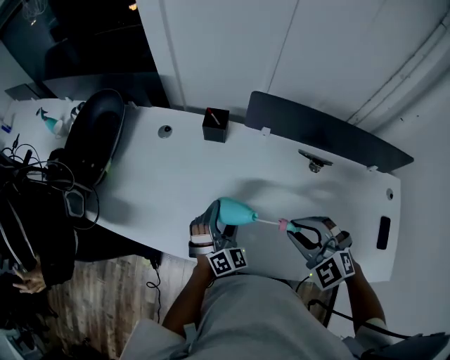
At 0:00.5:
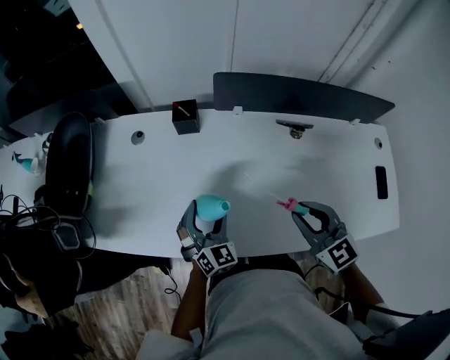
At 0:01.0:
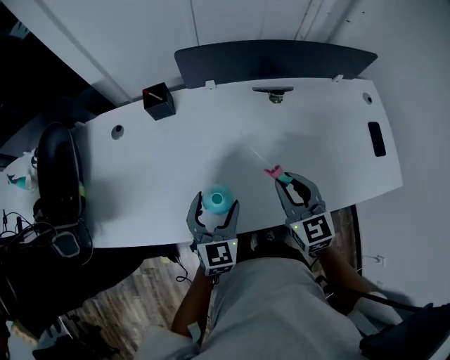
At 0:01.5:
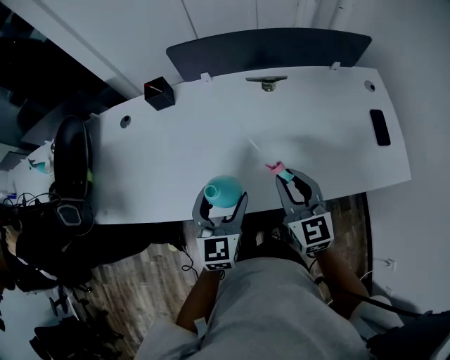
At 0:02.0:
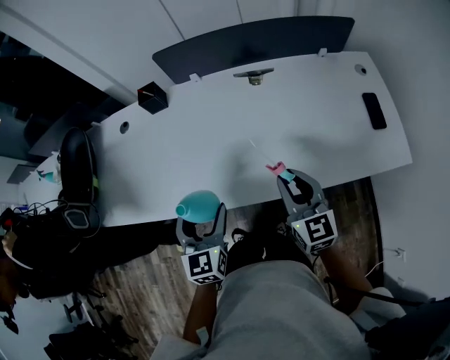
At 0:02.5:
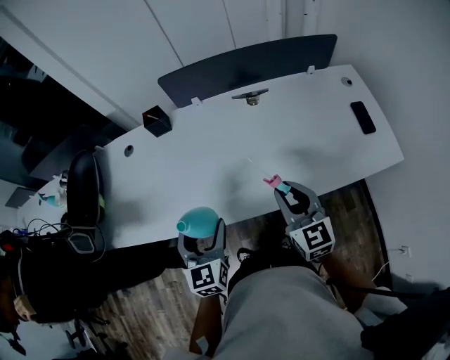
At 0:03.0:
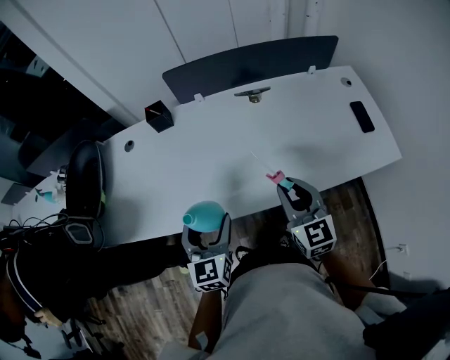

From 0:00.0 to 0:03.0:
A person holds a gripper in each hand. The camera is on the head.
From 0:00.0 to 0:01.5: The left gripper changes place by approximately 20 cm, and rotates some 40 degrees. Meanwhile the right gripper moves roughly 15 cm, and changes its angle by roughly 60 degrees.
From 0:01.5 to 0:03.0: The right gripper is displaced backward by approximately 5 cm; the left gripper travels to the left and backward by approximately 10 cm.

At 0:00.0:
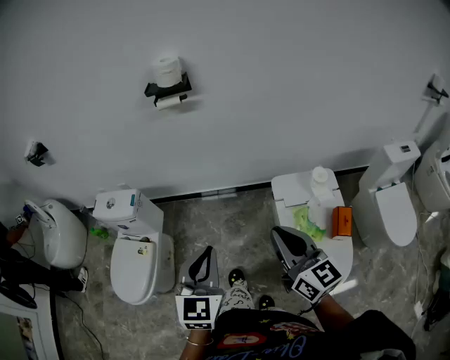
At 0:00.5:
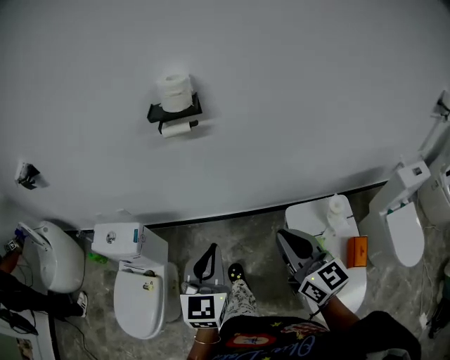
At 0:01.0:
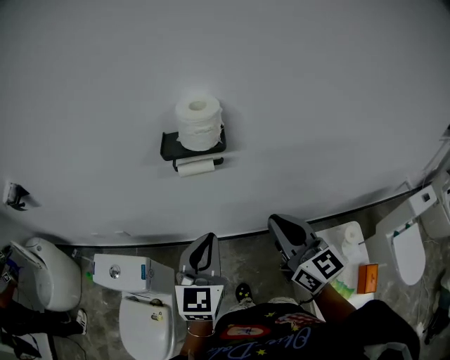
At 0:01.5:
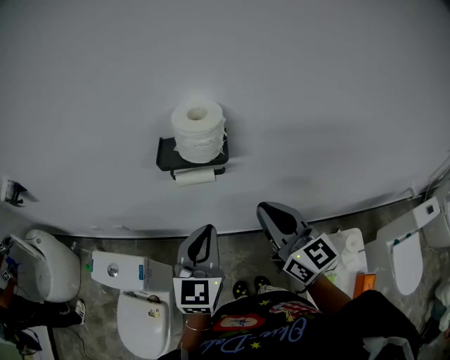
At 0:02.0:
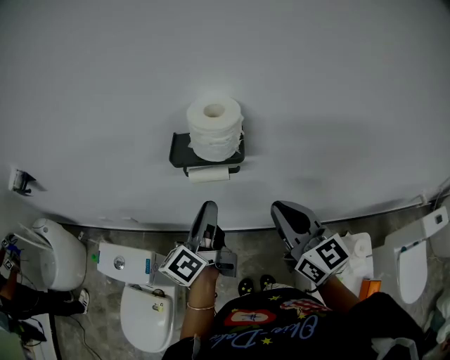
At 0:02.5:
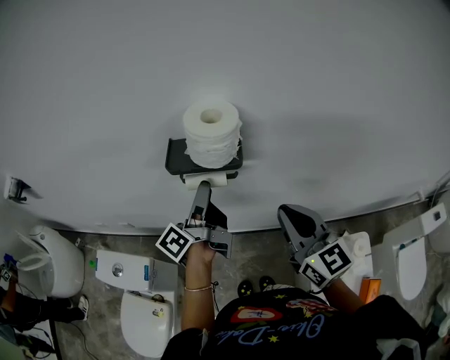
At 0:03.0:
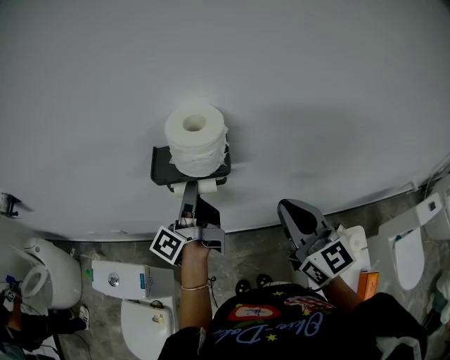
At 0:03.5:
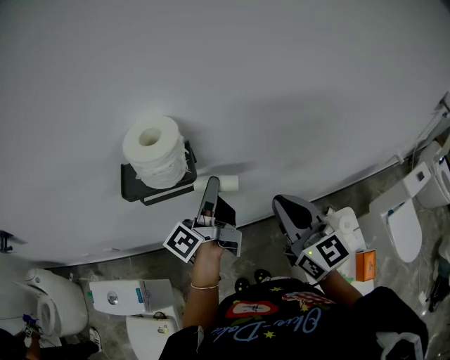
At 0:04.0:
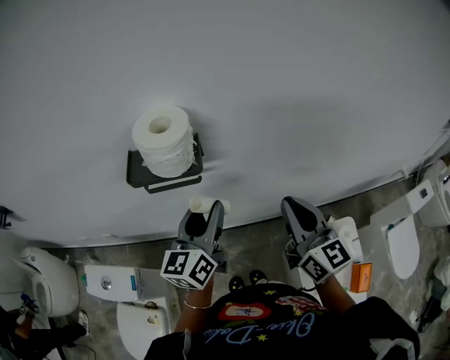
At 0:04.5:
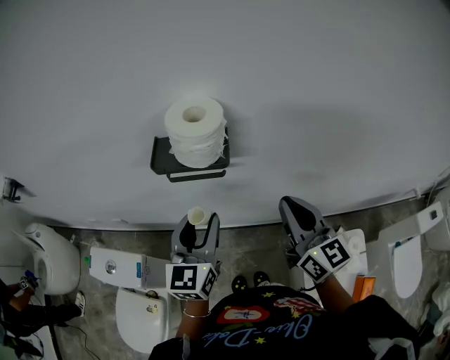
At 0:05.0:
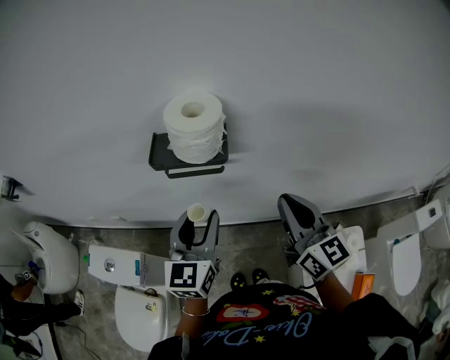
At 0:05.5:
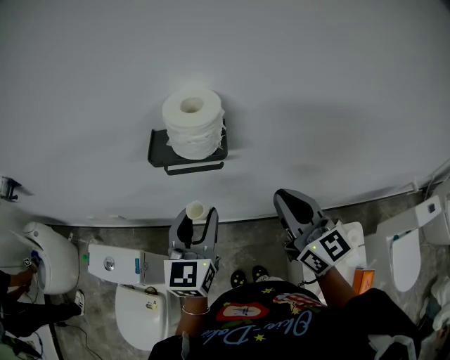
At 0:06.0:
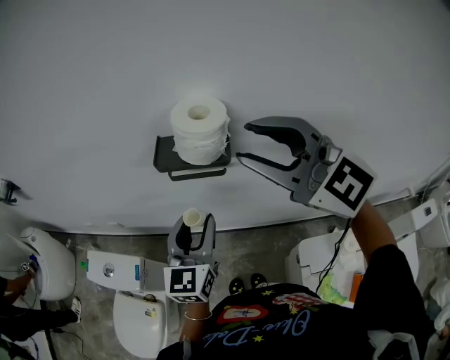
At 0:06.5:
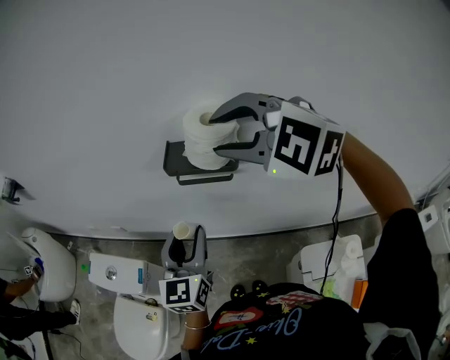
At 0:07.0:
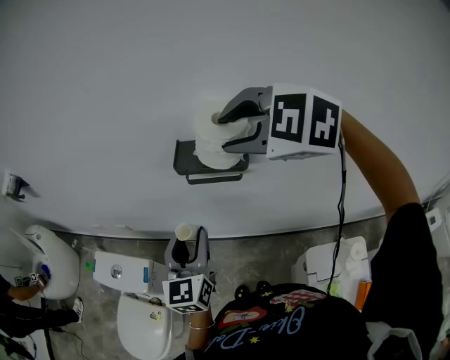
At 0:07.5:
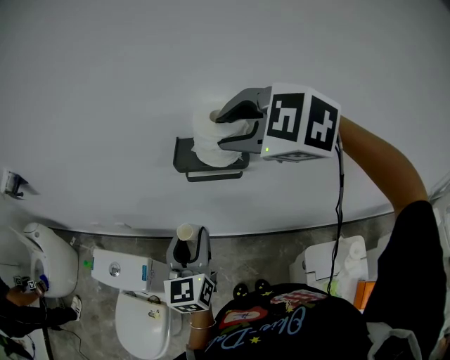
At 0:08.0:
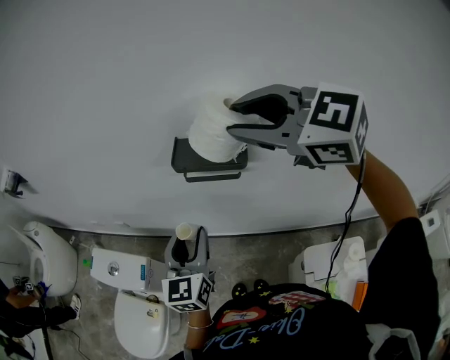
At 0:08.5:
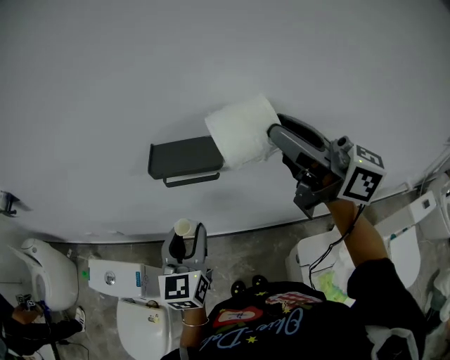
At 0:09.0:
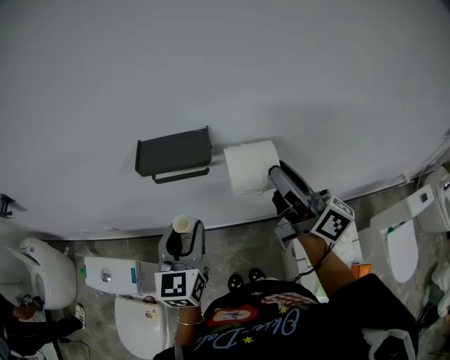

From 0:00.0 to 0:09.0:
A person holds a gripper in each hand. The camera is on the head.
From 0:00.0 to 0:02.0: The pair of grippers is taken forward, roughly 50 cm. The left gripper rotates around the line of its fingers by approximately 60 degrees, counterclockwise from behind.
From 0:02.0 to 0:04.5: The right gripper goes some 5 cm to the right. Meanwhile the left gripper travels to the right and back again, roughly 10 cm each way, rolls clockwise, seen from behind, by some 50 degrees, and opens.
From 0:04.5 to 0:07.0: The left gripper is displaced to the left by roughly 10 cm; the right gripper travels to the left, upward and forward by about 25 cm, tips its fingers downward by some 50 degrees, and opens its fingers.
From 0:07.0 to 0:09.0: The left gripper shifts roughly 5 cm to the right. The right gripper shifts some 20 cm to the right, backward and downward, and tilts its fingers about 60 degrees upward.

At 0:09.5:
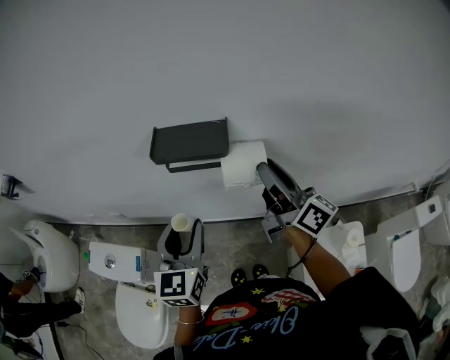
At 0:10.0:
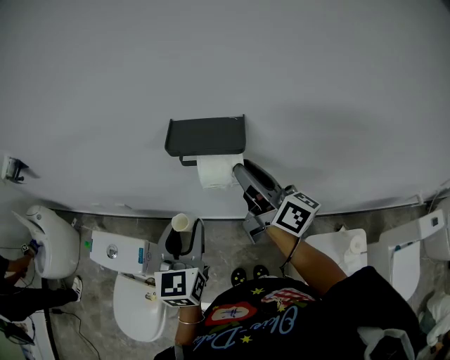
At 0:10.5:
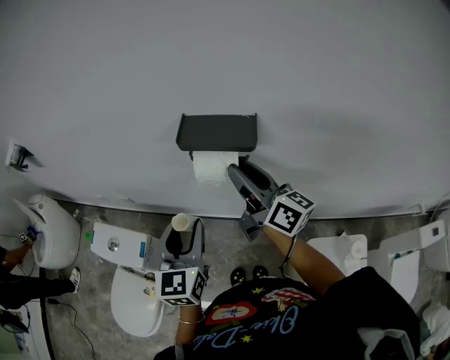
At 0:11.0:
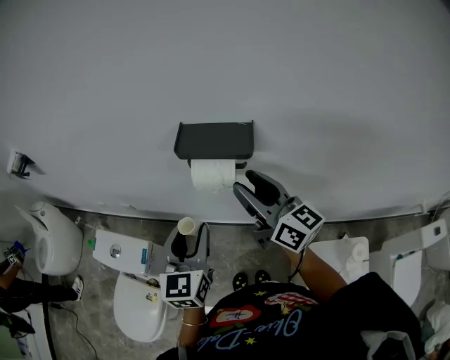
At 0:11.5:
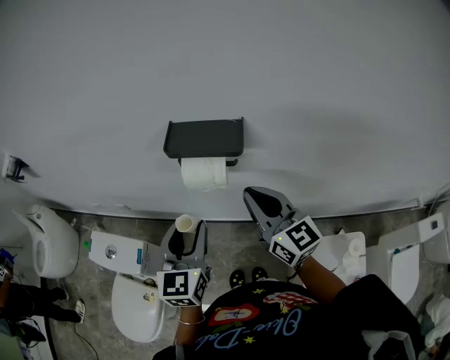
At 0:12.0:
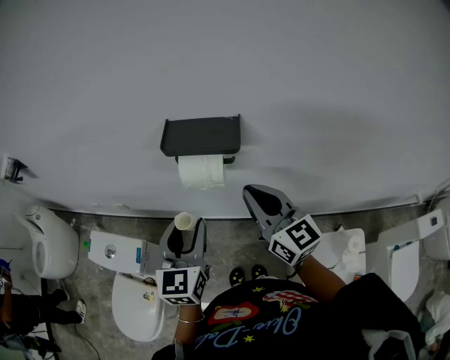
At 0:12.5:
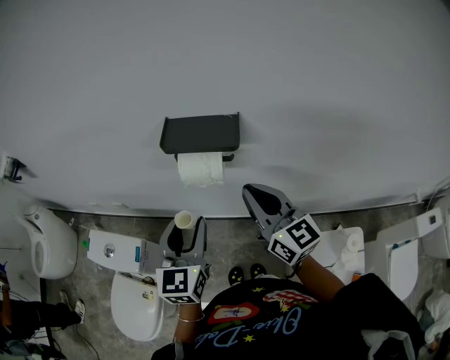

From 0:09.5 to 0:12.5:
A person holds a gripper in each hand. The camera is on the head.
From 0:09.5 to 0:11.0: The right gripper is displaced to the left by about 10 cm, and swivels roughly 20 degrees.
From 0:11.0 to 0:12.5: The right gripper closes its fingers.

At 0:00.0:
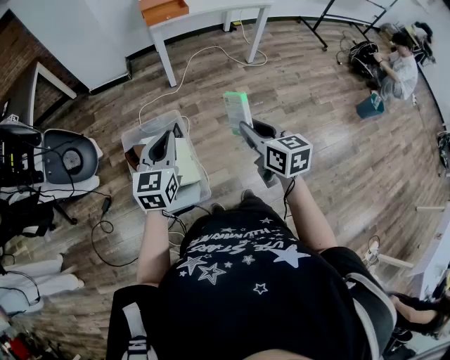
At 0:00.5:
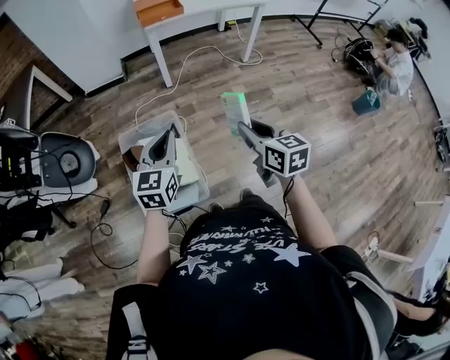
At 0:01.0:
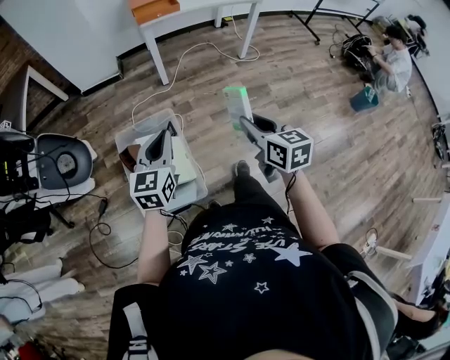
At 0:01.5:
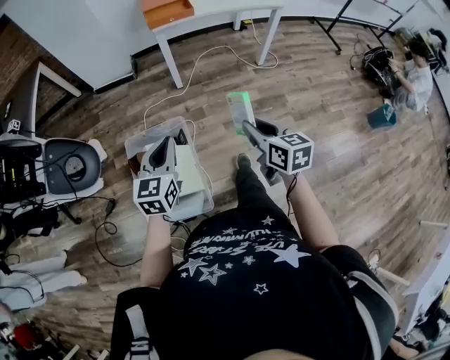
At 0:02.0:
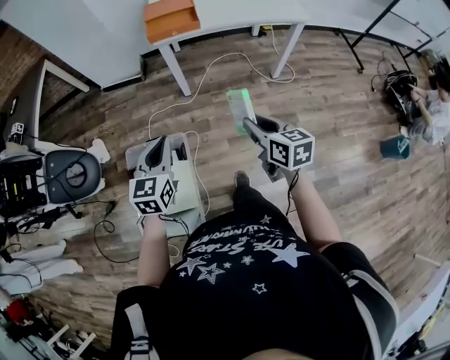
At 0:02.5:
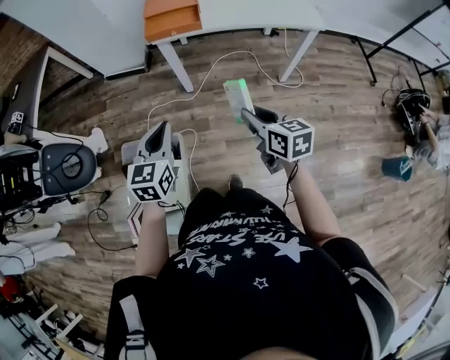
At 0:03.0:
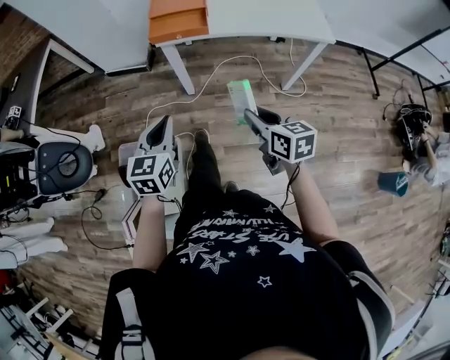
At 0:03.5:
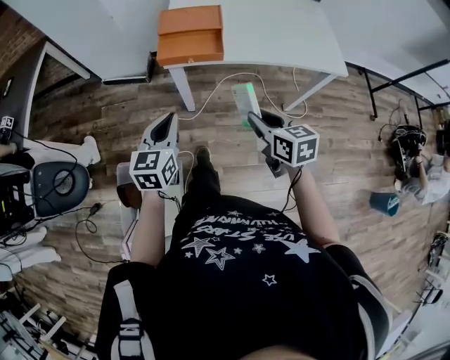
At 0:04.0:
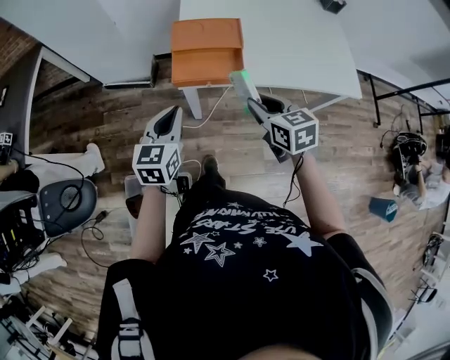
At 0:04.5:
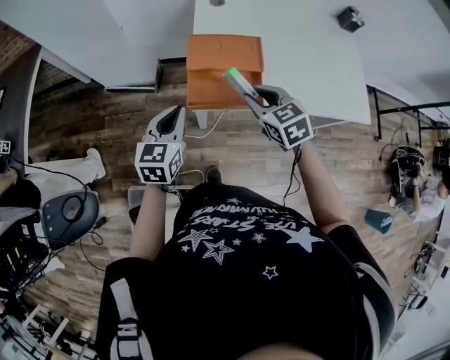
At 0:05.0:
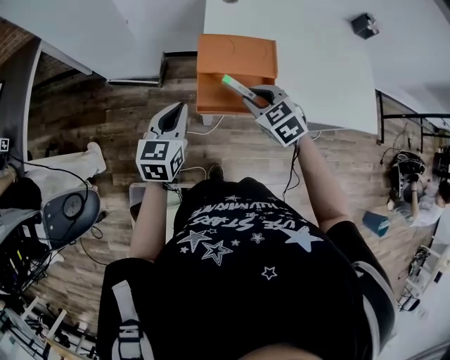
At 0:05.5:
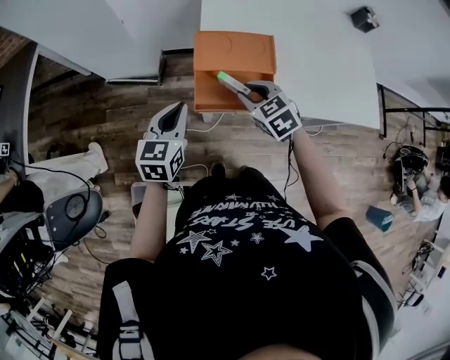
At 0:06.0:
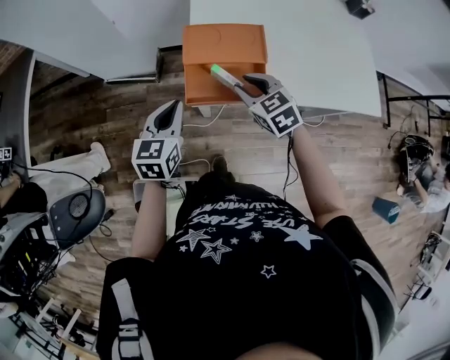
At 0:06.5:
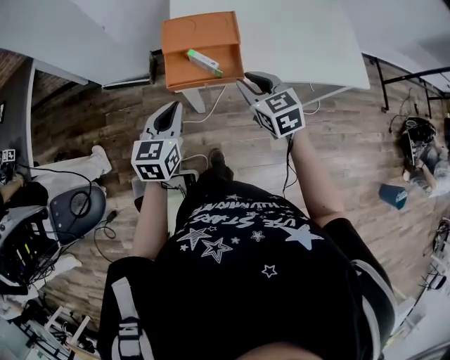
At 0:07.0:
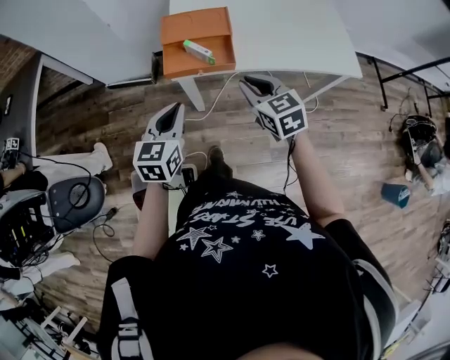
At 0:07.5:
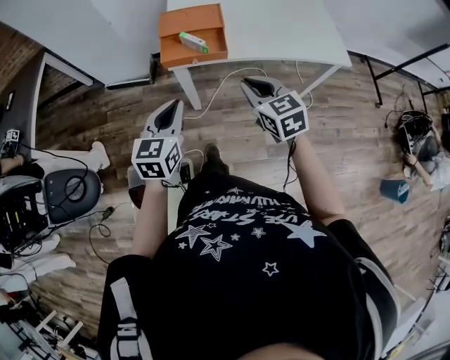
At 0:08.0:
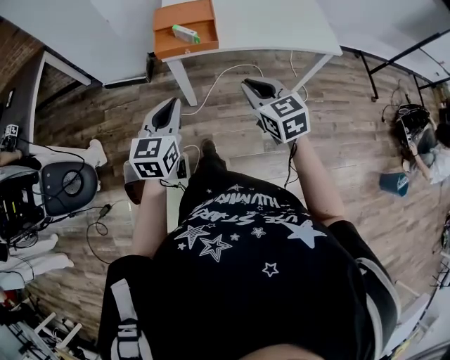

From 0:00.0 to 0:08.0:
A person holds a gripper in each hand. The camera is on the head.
From 0:00.0 to 0:02.0: Both grippers travel together forward and to the right, approximately 35 cm.
From 0:02.0 to 0:04.0: The two grippers travel together, forward, some 50 cm. The right gripper turns by approximately 20 degrees.
From 0:04.0 to 0:06.0: Both grippers travel together forward, roughly 15 cm.
From 0:06.0 to 0:08.0: The grippers both shift backward by some 35 cm.

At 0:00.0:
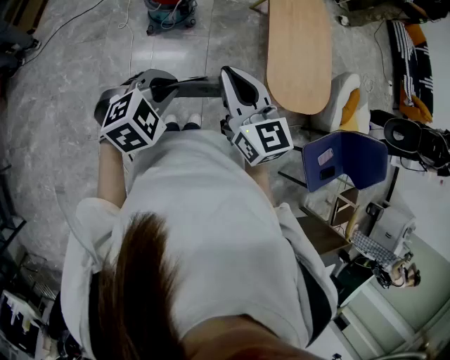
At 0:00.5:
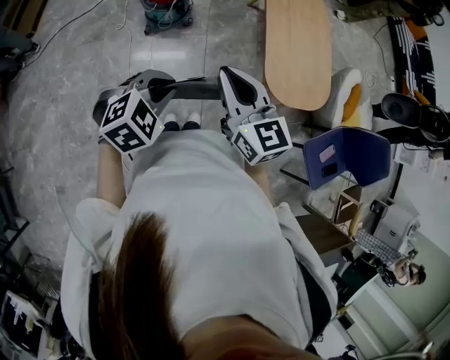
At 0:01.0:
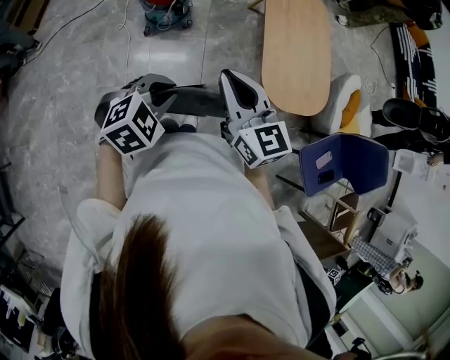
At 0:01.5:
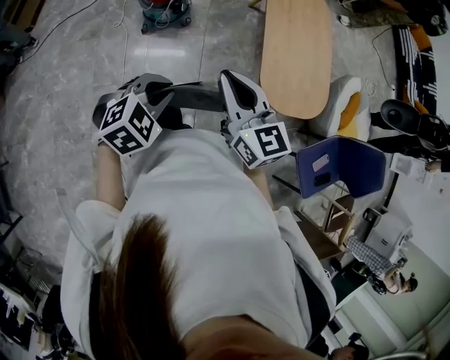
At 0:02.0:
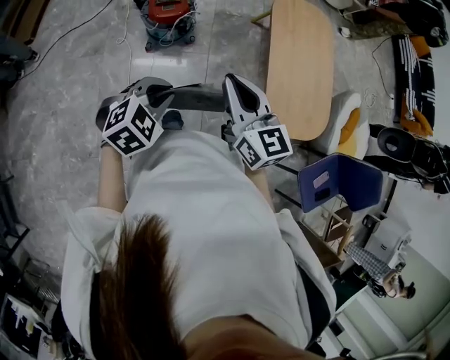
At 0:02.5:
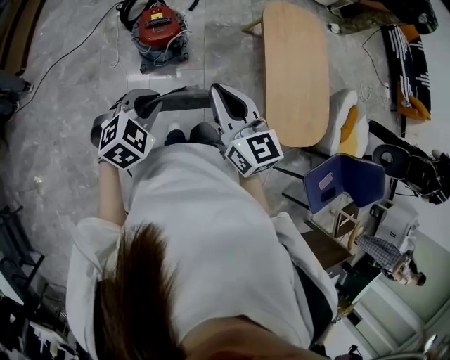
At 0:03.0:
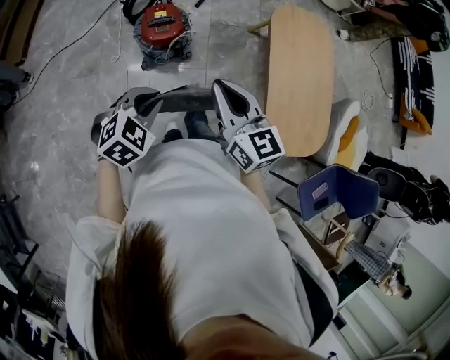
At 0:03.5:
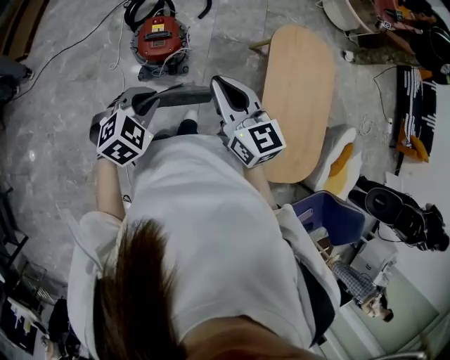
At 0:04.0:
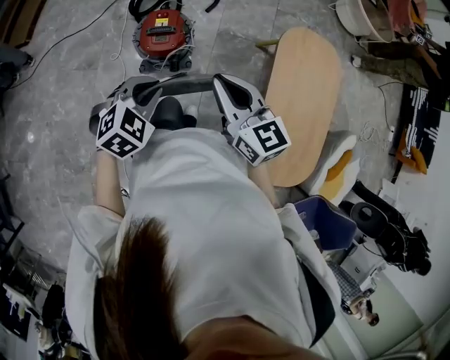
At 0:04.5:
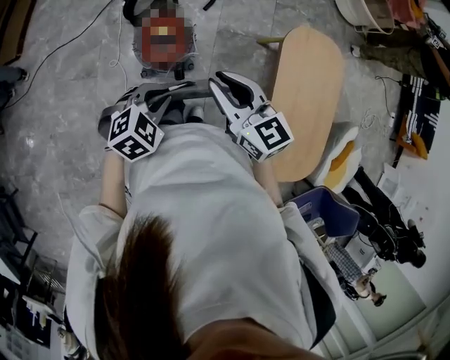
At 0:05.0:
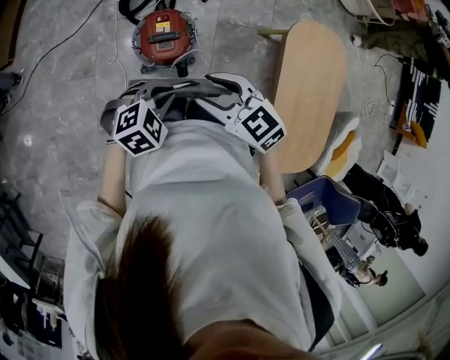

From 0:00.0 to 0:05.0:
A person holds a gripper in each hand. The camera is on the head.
From 0:00.0 to 0:02.5: The left gripper goes roughly 25 cm forward and to the left. The right gripper heads forward, covering about 20 cm.
From 0:02.5 to 0:05.0: The right gripper moves roughly 30 cm, changes its angle by approximately 50 degrees, and opens up; the left gripper shifts by about 30 cm.
